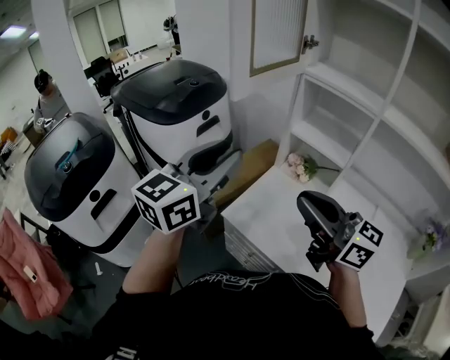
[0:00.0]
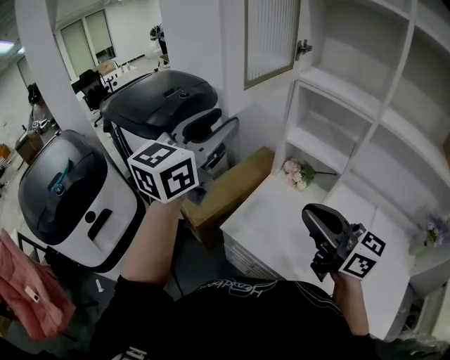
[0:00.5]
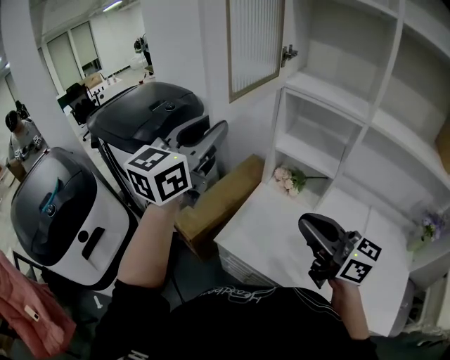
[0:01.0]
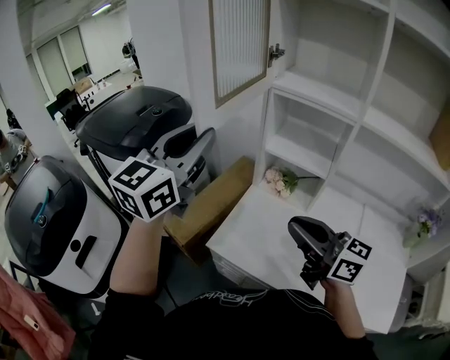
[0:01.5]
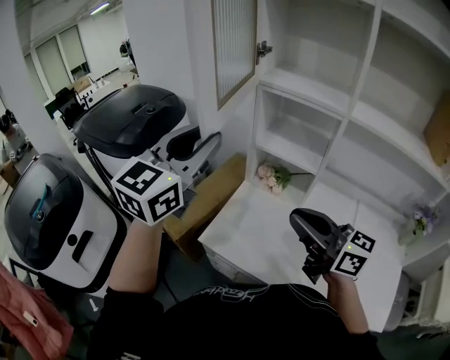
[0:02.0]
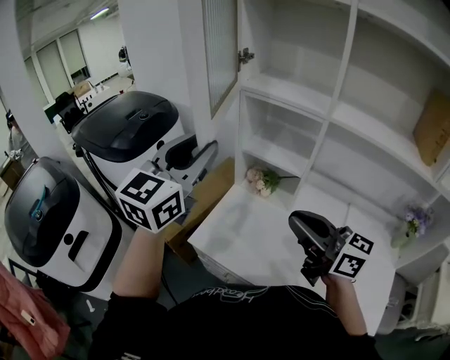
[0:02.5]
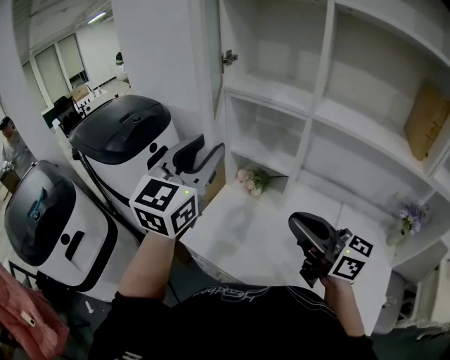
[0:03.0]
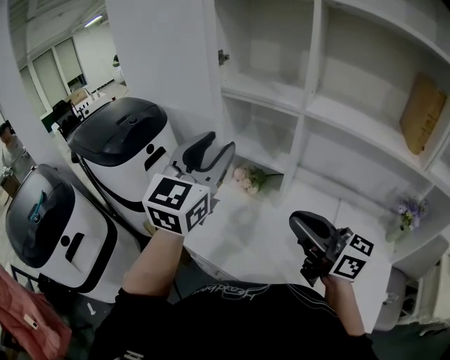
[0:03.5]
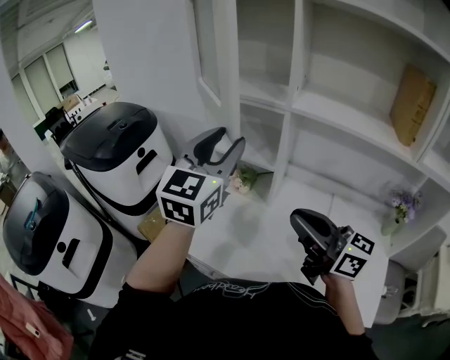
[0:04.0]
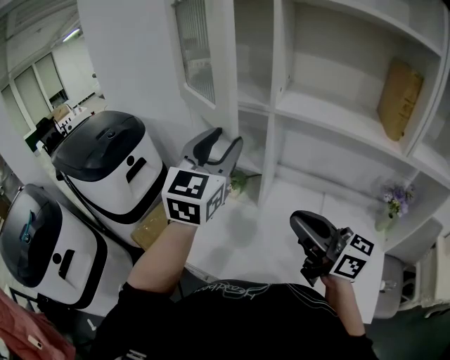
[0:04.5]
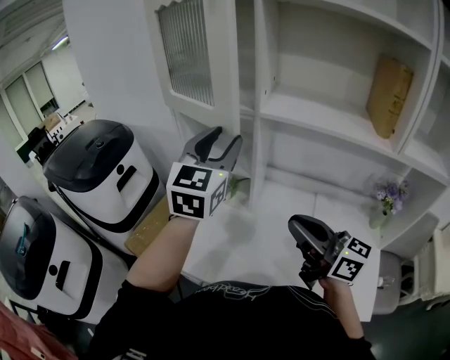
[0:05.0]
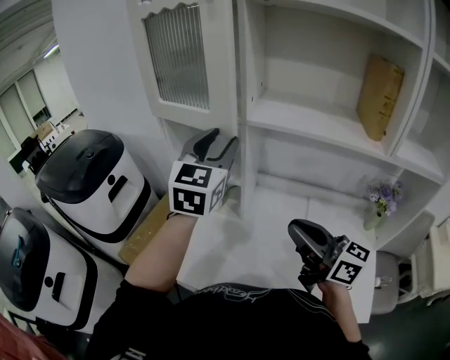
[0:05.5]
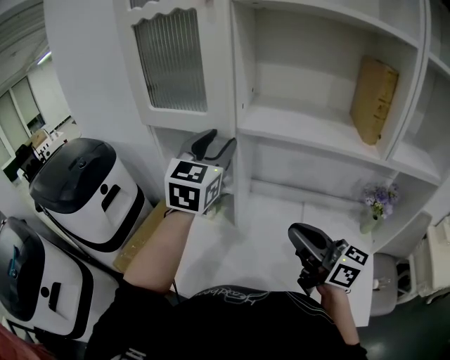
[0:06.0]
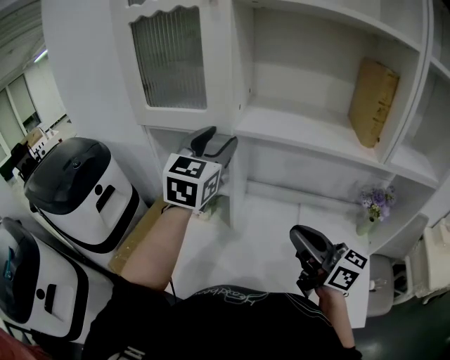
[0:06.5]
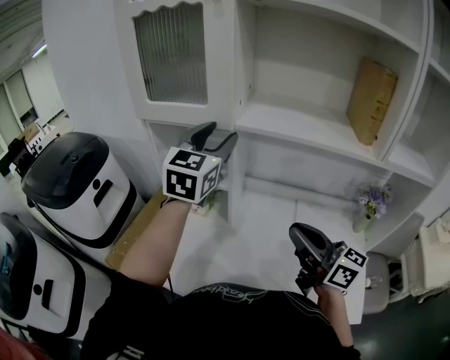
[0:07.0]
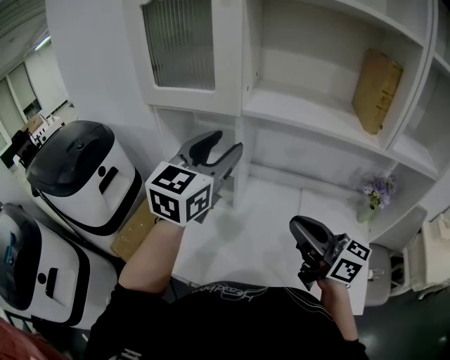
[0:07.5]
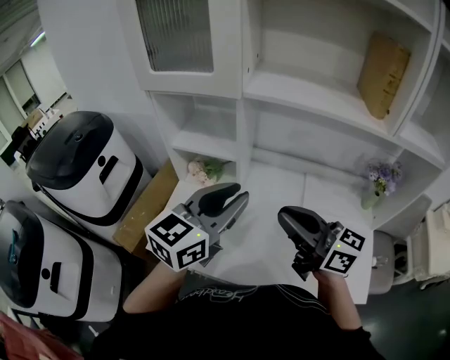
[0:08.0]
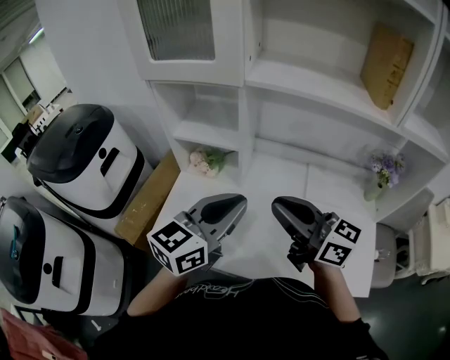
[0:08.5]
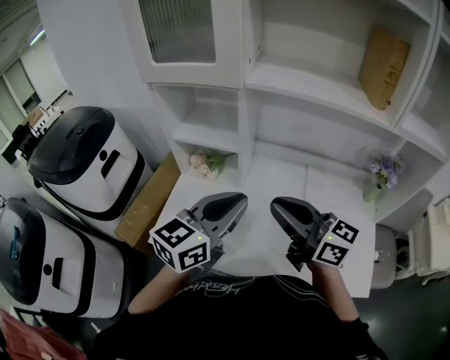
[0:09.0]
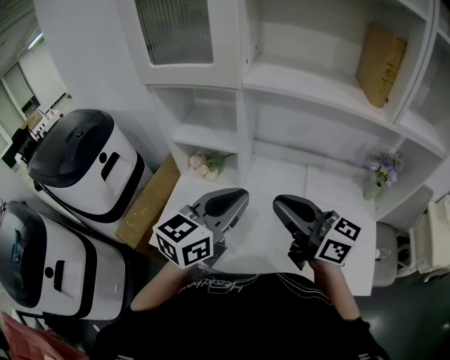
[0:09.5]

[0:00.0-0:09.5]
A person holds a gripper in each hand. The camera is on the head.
0:00.0 to 0:02.0: The left gripper travels forward, to the right and upward by approximately 10 cm, while the right gripper moves to the right, about 5 cm.
0:02.0 to 0:04.0: The left gripper shifts some 20 cm to the right, while the right gripper heads to the right and backward, covering approximately 15 cm.
0:04.0 to 0:05.5: The right gripper moves to the right, approximately 10 cm, while the left gripper is displaced to the right and forward by roughly 10 cm.
0:05.5 to 0:07.5: The grippers stay close to where they were, moving slightly.
0:07.5 to 0:09.5: The right gripper moves some 5 cm. The left gripper shifts about 15 cm downward and backward, rotates roughly 20 degrees, and closes its fingers.

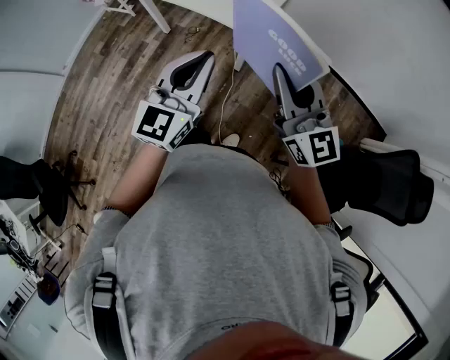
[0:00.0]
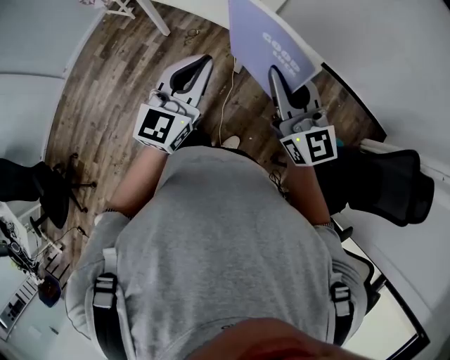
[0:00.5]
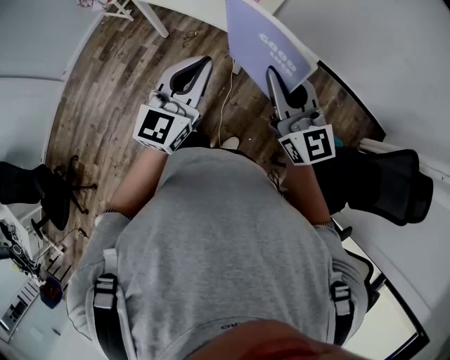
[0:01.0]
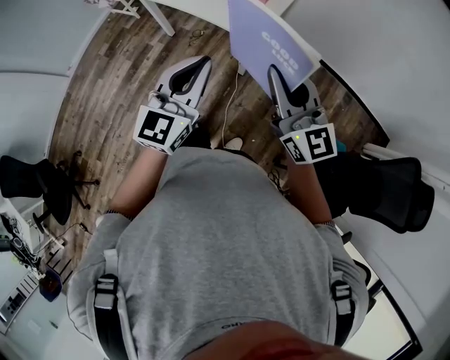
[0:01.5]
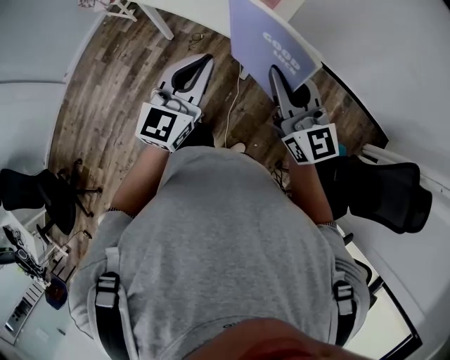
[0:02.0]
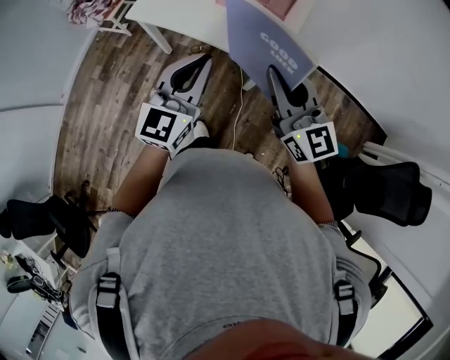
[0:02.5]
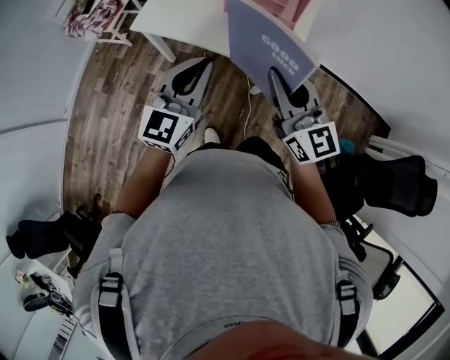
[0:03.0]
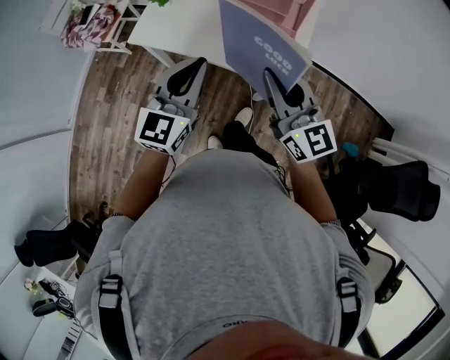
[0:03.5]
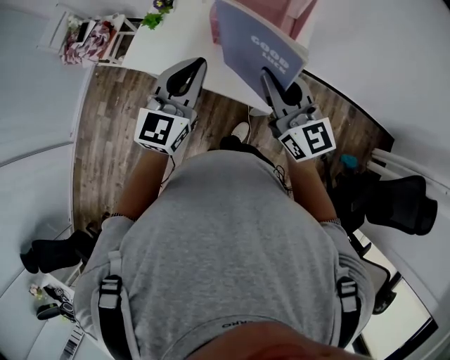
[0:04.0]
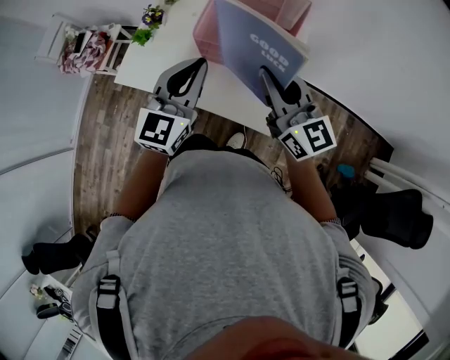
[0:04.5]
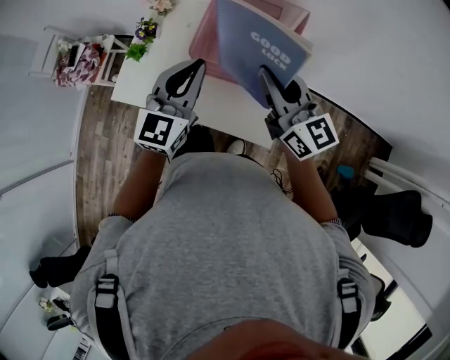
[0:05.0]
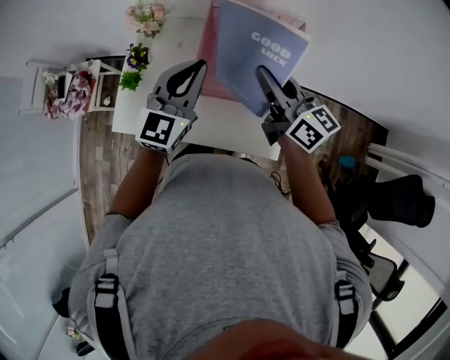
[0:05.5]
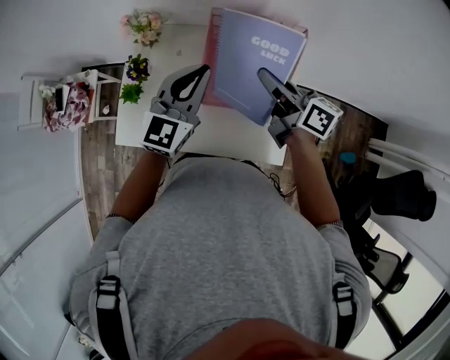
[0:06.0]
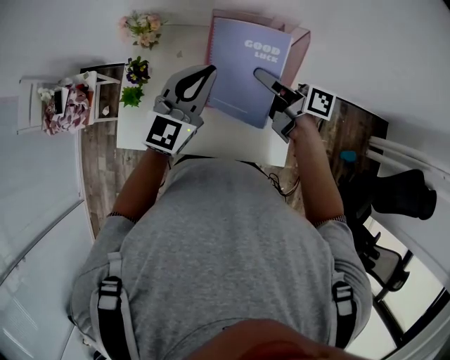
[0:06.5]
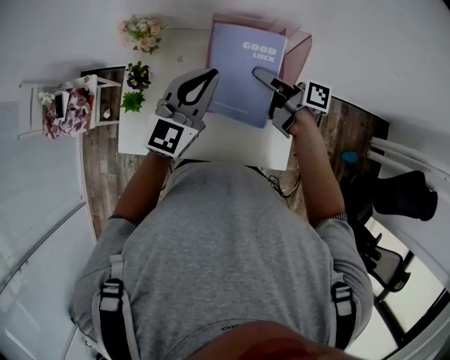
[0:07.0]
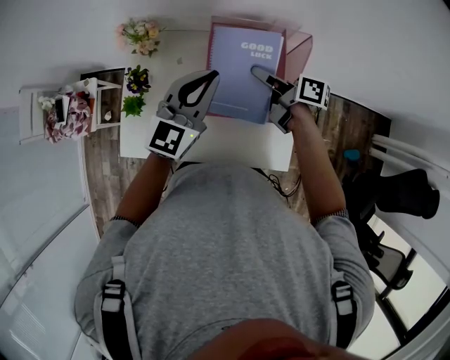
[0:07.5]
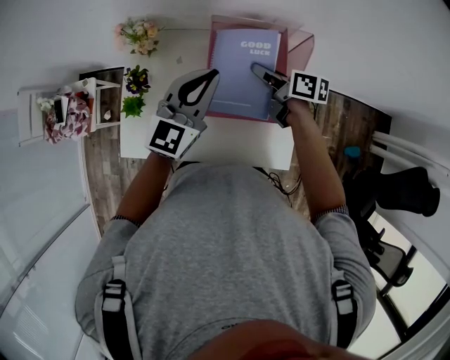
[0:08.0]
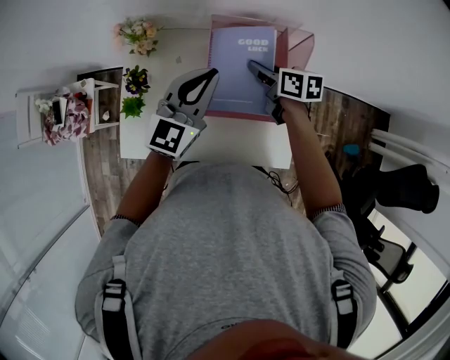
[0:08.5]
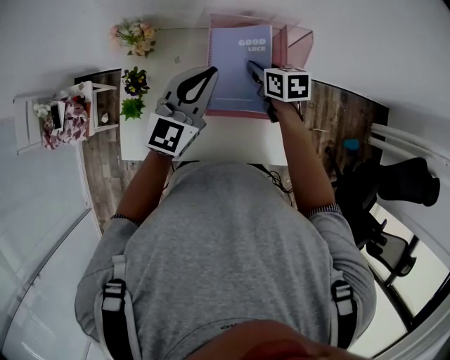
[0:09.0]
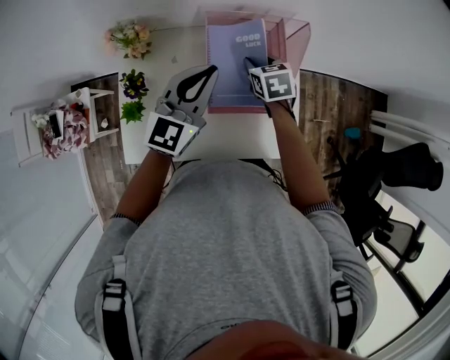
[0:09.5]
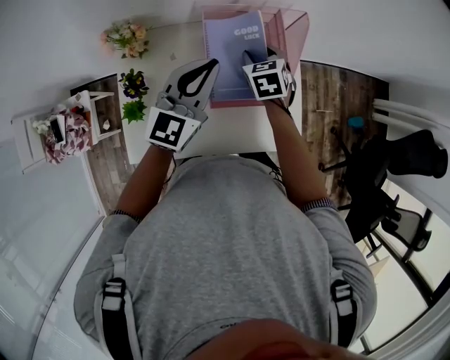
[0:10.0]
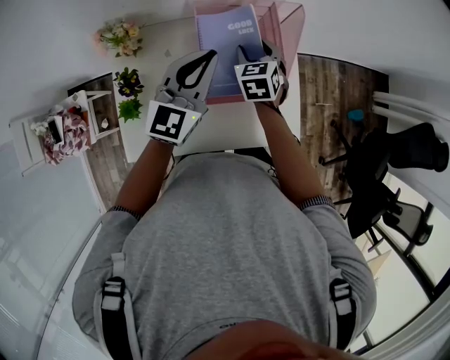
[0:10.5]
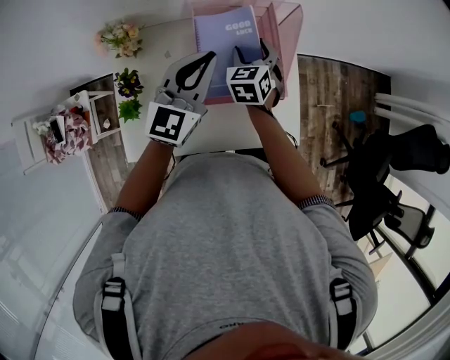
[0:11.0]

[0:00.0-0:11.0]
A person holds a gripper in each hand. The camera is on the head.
0:00.0 to 0:02.0: The grippers both shift forward by about 10 cm.
0:02.0 to 0:03.5: Both grippers travel together forward and to the left, about 25 cm.
0:03.5 to 0:05.5: Both grippers travel together forward, roughly 30 cm. The right gripper rotates approximately 30 degrees.
0:05.5 to 0:07.5: The right gripper heads forward and downward, covering approximately 15 cm, and turns by some 40 degrees. Meanwhile the left gripper is displaced forward by approximately 5 cm.
0:07.5 to 0:09.0: The right gripper is displaced downward by some 5 cm, and tilts its fingers roughly 30 degrees downward.
0:09.0 to 0:11.0: The right gripper changes its angle by about 40 degrees, and opens.

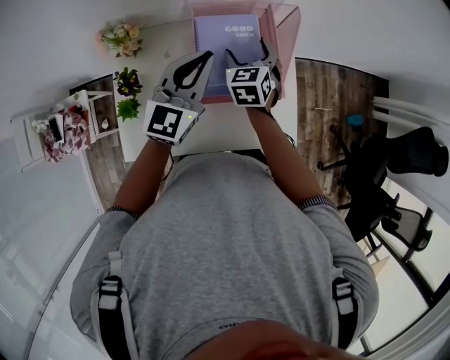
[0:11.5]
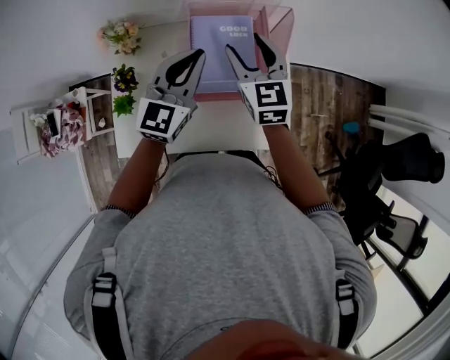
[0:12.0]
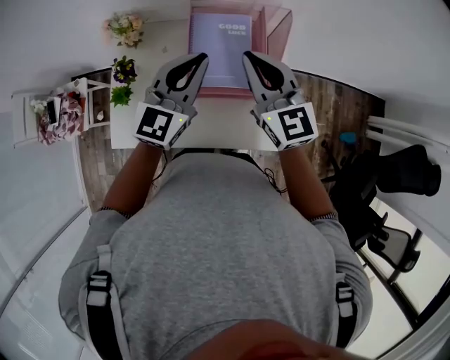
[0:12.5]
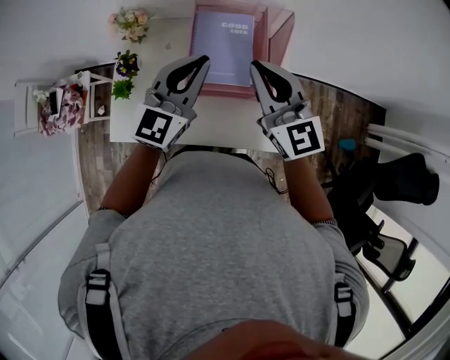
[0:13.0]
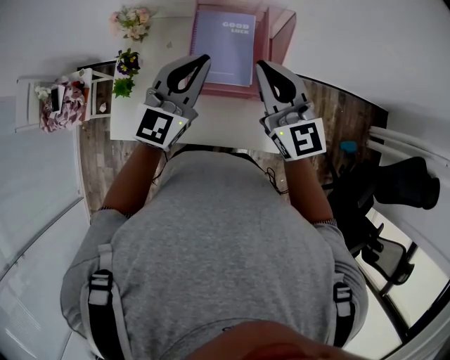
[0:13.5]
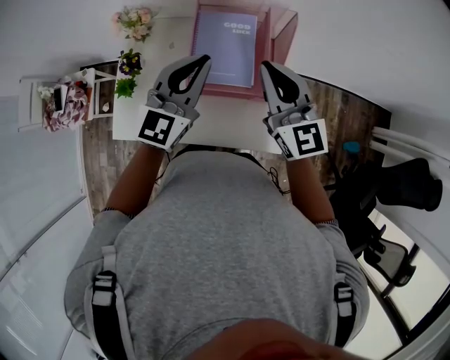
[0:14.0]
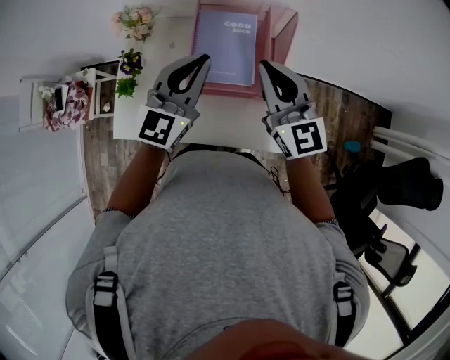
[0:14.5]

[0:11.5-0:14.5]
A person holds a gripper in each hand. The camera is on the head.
0:11.5 to 0:13.0: The right gripper shifts some 20 cm upward and backward, tips its fingers upward by about 30 degrees, and closes up. The left gripper travels backward by about 5 cm.
0:13.0 to 0:14.5: The grippers make only small movements.

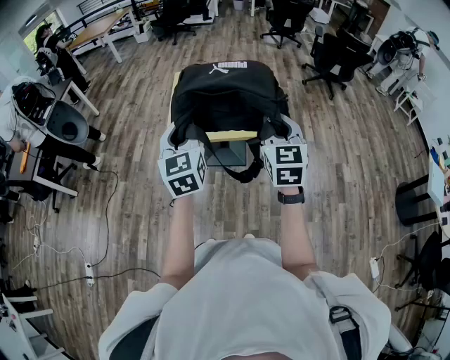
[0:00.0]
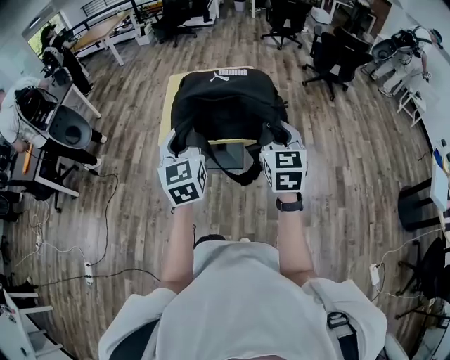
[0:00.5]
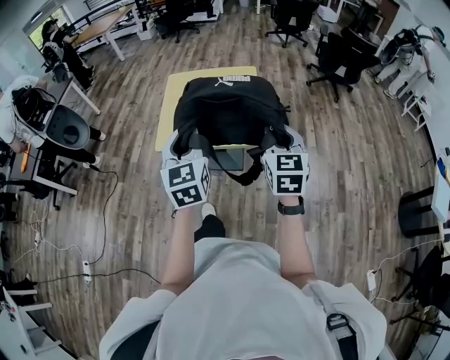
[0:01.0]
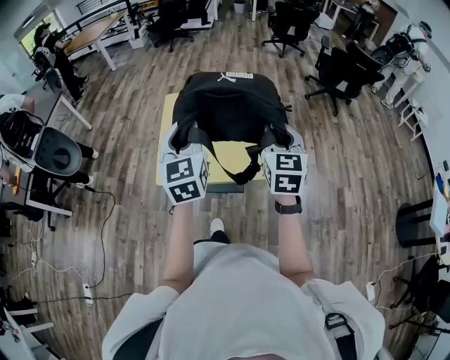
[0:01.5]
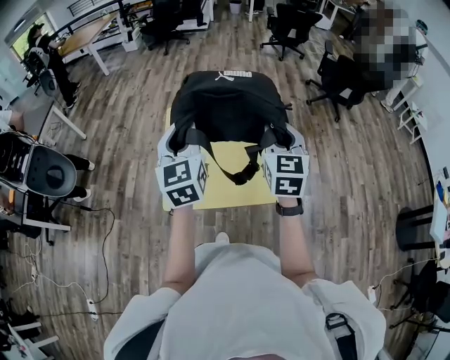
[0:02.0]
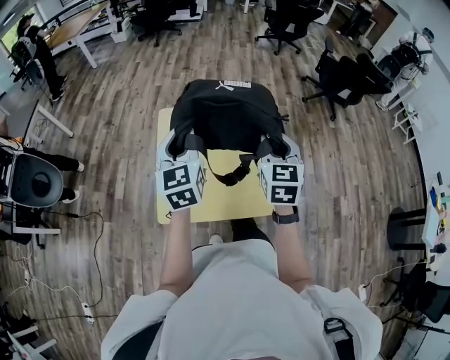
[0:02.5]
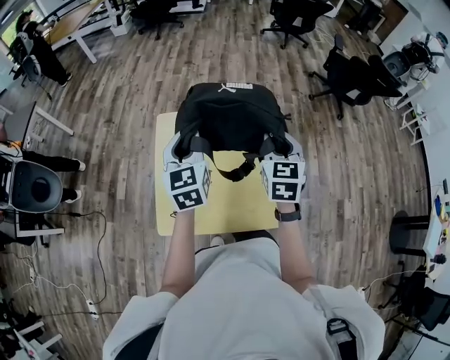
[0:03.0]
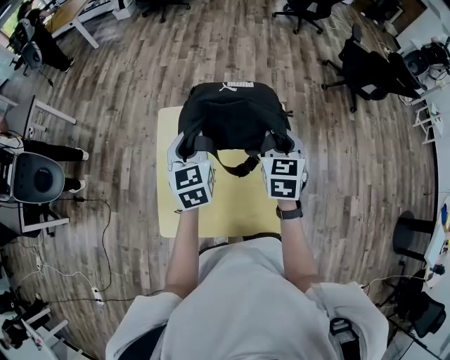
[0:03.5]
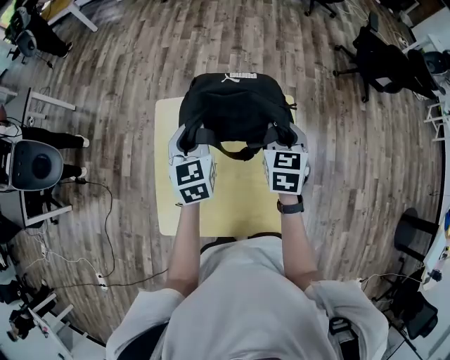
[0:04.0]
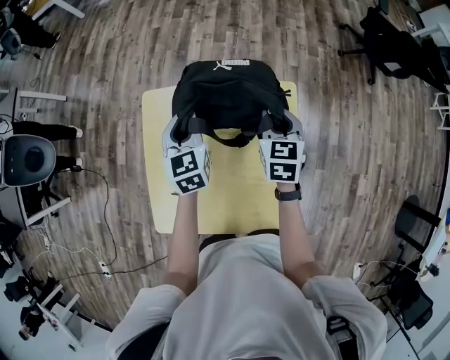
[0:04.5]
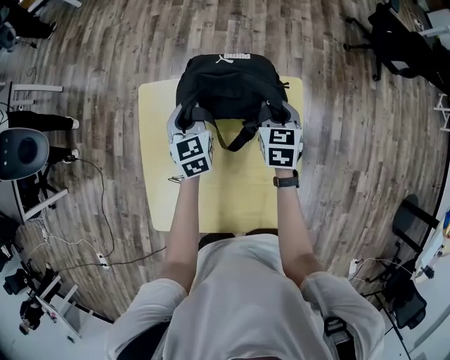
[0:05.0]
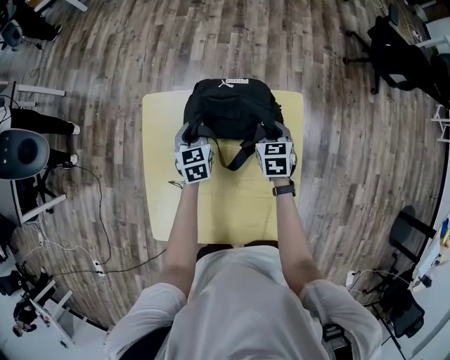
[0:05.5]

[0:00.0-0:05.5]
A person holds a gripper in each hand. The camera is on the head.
0:00.0 to 0:02.0: Both grippers move forward, approximately 35 cm.
0:02.0 to 0:03.5: Both grippers move forward and downward, about 25 cm.
0:03.5 to 0:05.5: Both grippers move downward and forward, some 30 cm.
